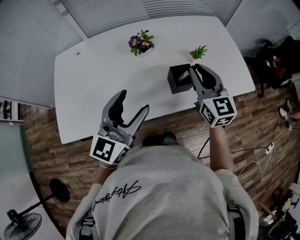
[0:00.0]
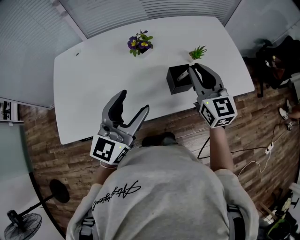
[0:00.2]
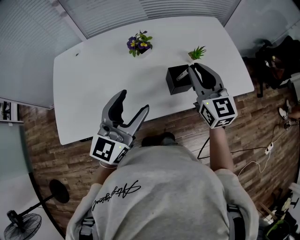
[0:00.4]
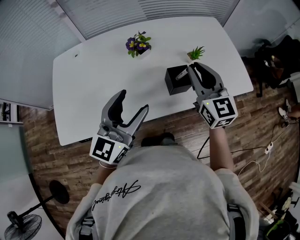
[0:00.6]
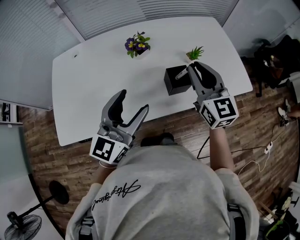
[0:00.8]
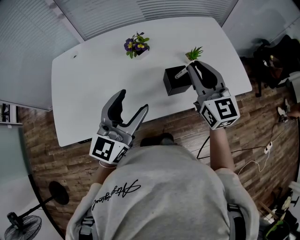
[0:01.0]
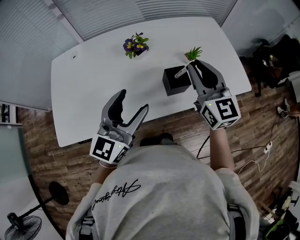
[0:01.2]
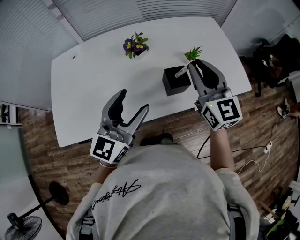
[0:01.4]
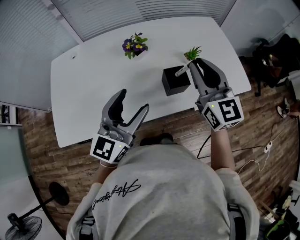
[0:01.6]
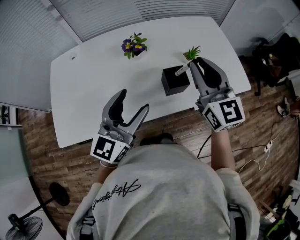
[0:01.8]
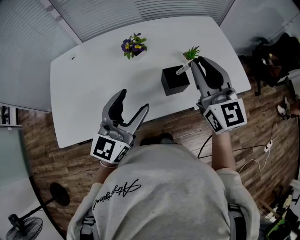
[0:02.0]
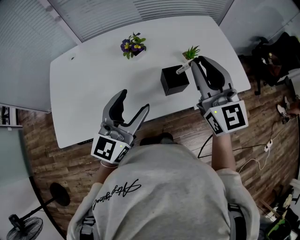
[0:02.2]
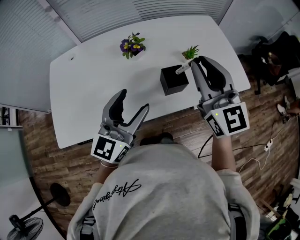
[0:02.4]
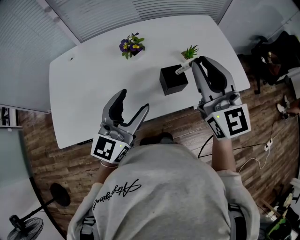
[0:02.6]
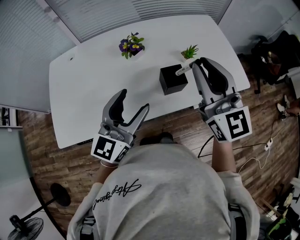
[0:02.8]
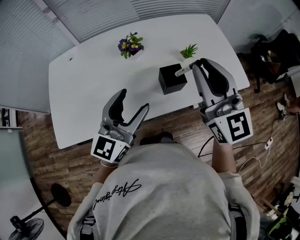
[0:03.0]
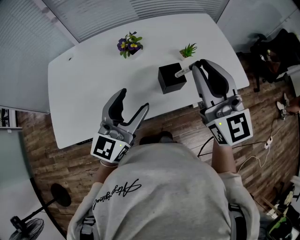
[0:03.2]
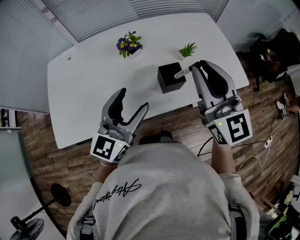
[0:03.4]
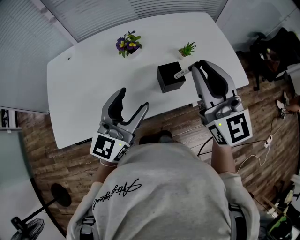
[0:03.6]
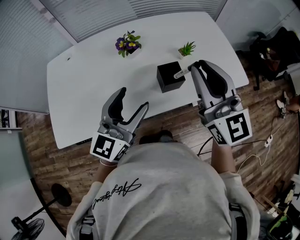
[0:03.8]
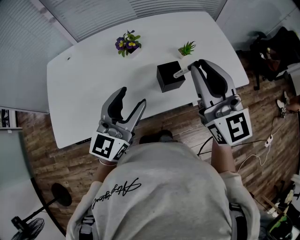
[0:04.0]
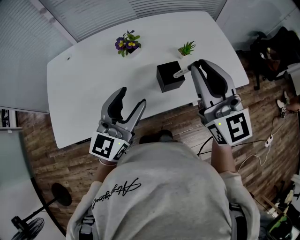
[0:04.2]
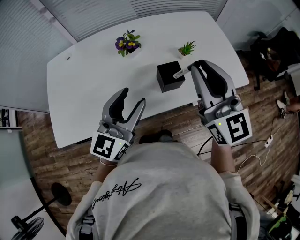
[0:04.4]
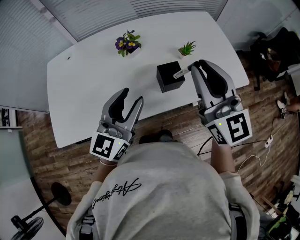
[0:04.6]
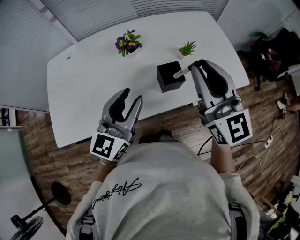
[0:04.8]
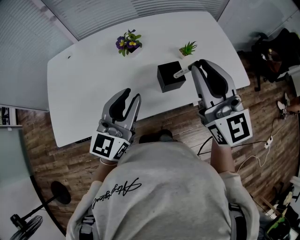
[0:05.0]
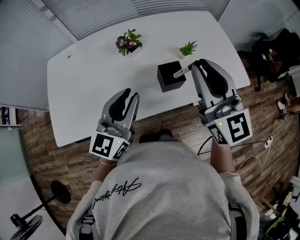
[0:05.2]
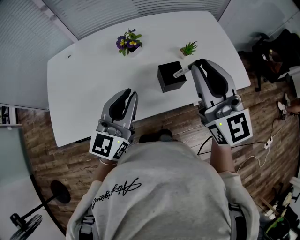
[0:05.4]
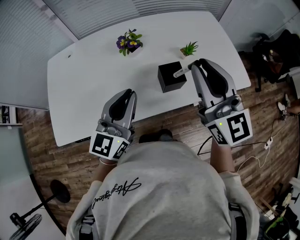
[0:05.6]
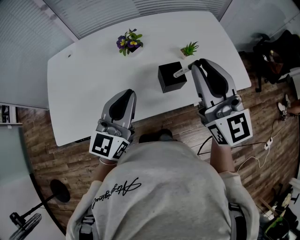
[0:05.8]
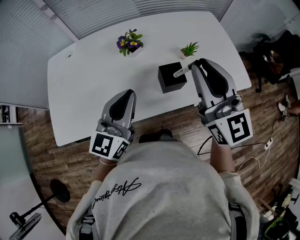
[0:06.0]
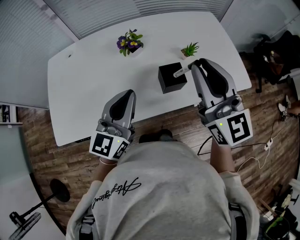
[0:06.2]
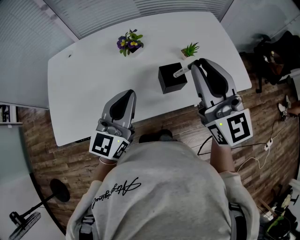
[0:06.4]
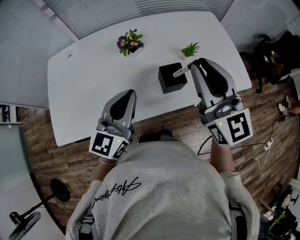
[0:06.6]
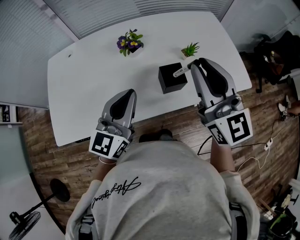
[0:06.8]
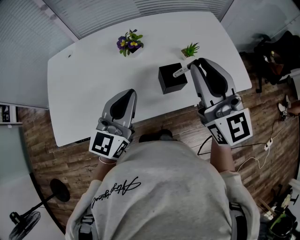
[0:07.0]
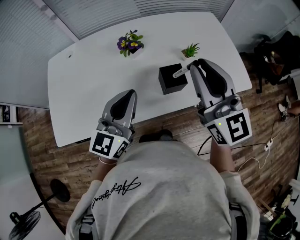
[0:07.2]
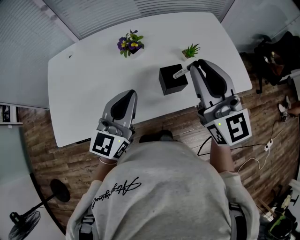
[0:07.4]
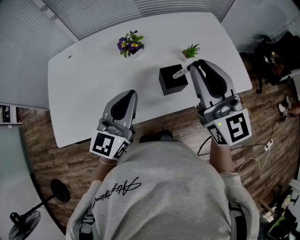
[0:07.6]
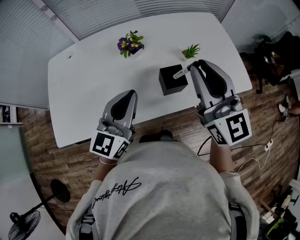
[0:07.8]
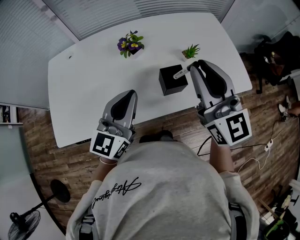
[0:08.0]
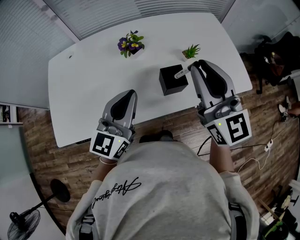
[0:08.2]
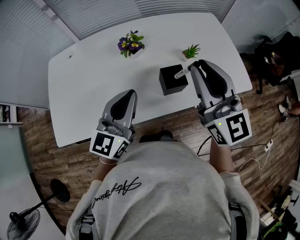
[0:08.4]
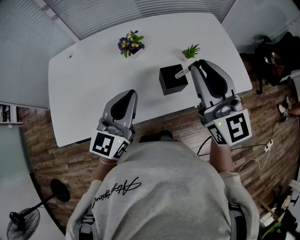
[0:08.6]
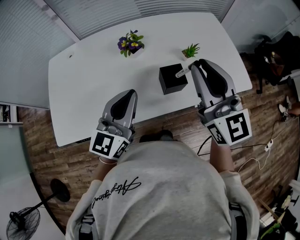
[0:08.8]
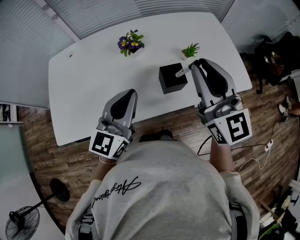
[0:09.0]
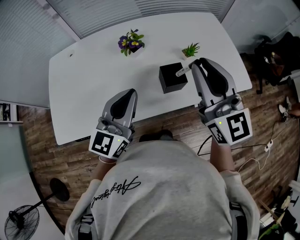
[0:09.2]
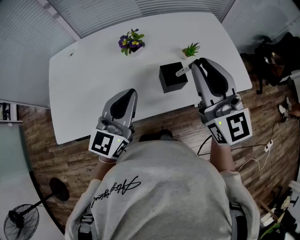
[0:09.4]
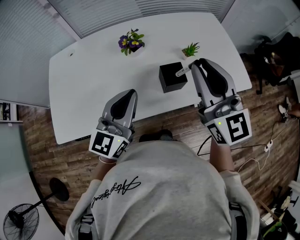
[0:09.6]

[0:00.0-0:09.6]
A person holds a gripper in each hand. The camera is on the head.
0:00.0 to 0:01.6: The right gripper shifts approximately 5 cm upward.
0:01.6 to 0:03.2: The right gripper goes approximately 5 cm upward.
0:03.2 to 0:04.8: The left gripper closes up.
0:04.8 to 0:06.4: The left gripper closes.
0:06.4 to 0:08.0: The two grippers keep their place.
0:08.0 to 0:09.6: There are only small adjustments of the grippers.

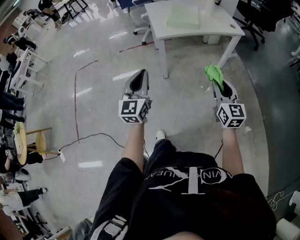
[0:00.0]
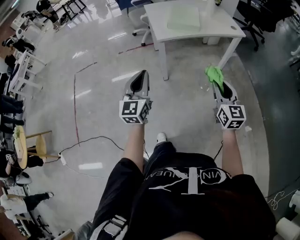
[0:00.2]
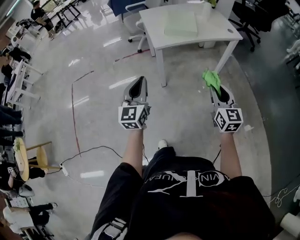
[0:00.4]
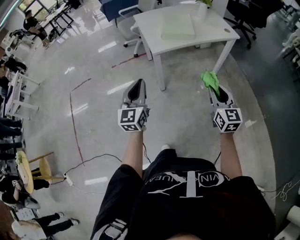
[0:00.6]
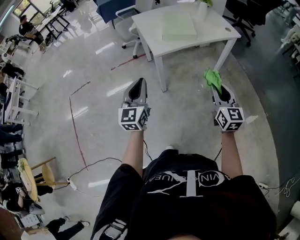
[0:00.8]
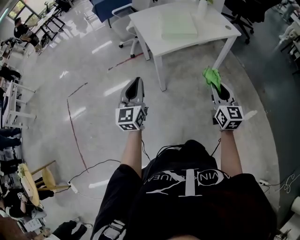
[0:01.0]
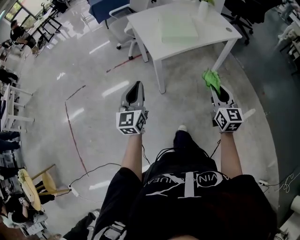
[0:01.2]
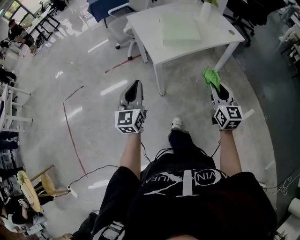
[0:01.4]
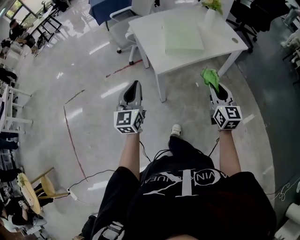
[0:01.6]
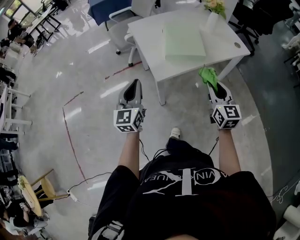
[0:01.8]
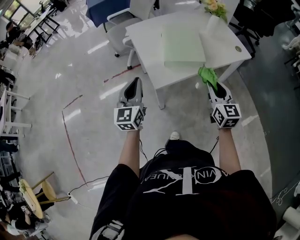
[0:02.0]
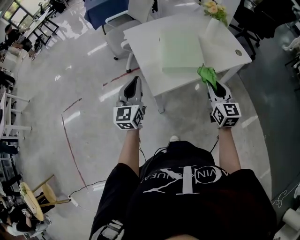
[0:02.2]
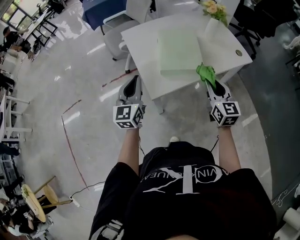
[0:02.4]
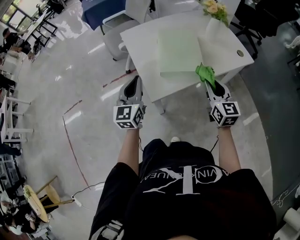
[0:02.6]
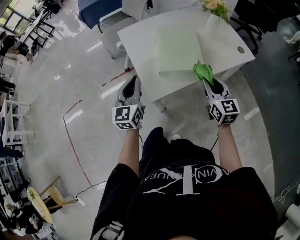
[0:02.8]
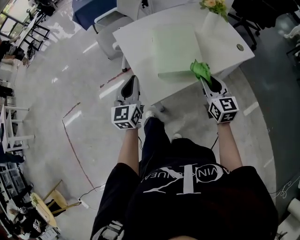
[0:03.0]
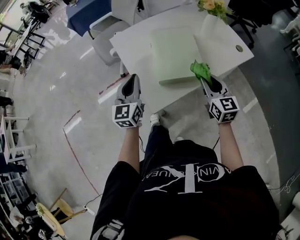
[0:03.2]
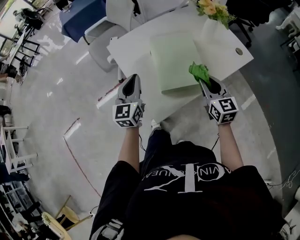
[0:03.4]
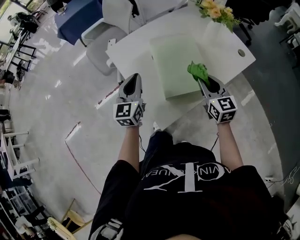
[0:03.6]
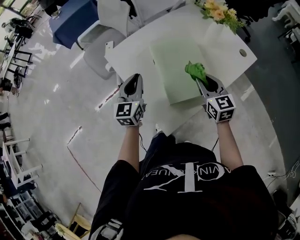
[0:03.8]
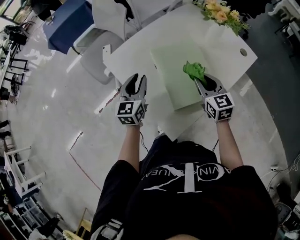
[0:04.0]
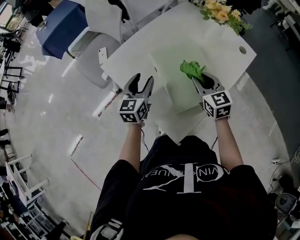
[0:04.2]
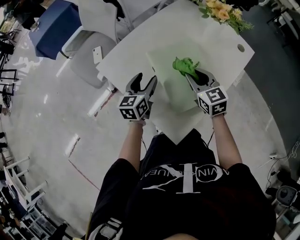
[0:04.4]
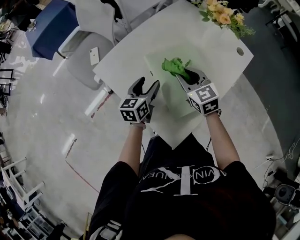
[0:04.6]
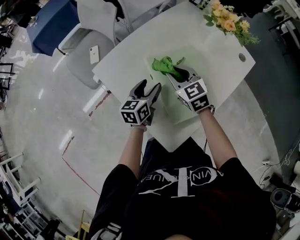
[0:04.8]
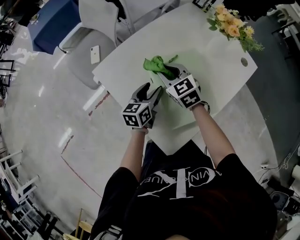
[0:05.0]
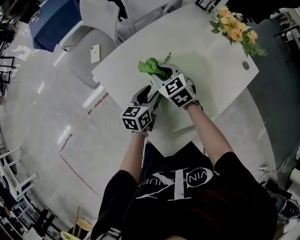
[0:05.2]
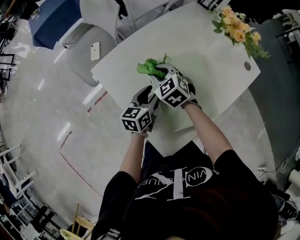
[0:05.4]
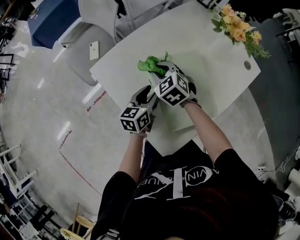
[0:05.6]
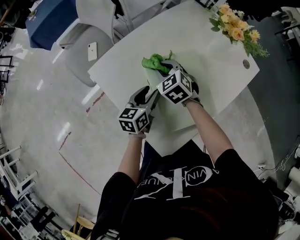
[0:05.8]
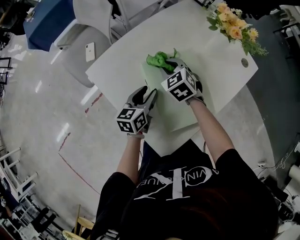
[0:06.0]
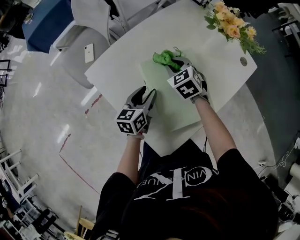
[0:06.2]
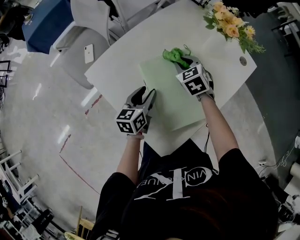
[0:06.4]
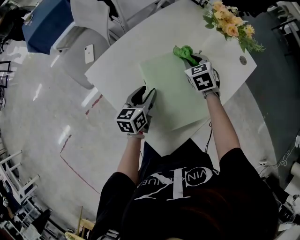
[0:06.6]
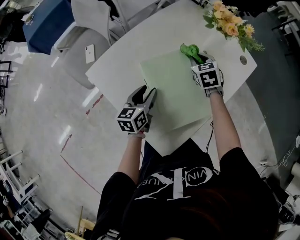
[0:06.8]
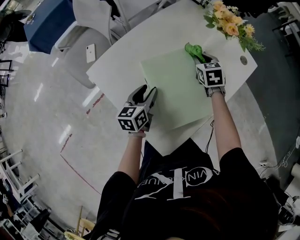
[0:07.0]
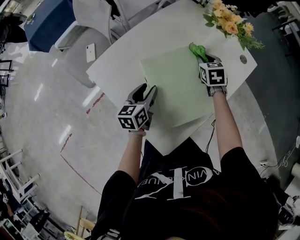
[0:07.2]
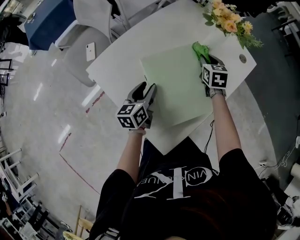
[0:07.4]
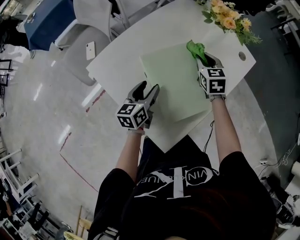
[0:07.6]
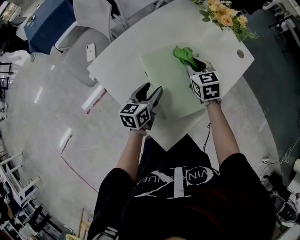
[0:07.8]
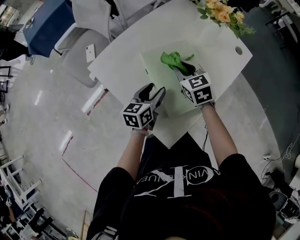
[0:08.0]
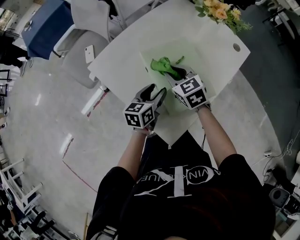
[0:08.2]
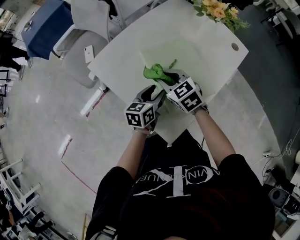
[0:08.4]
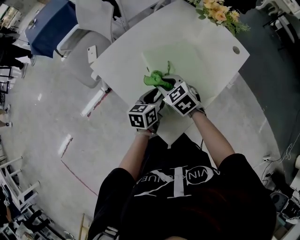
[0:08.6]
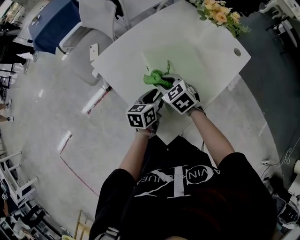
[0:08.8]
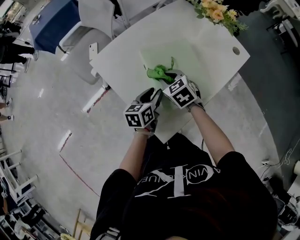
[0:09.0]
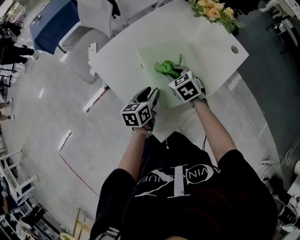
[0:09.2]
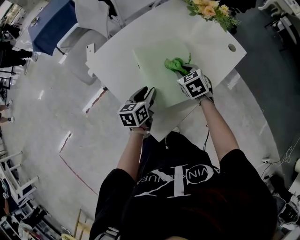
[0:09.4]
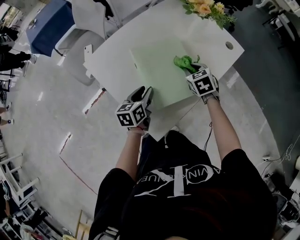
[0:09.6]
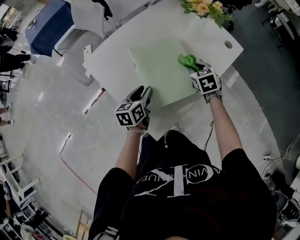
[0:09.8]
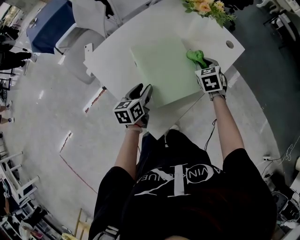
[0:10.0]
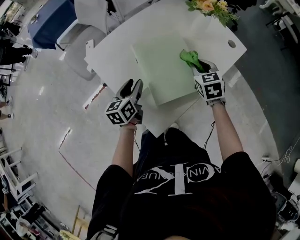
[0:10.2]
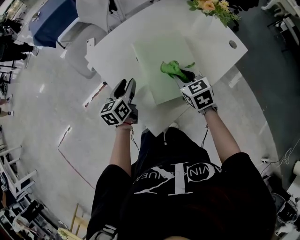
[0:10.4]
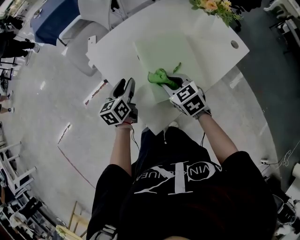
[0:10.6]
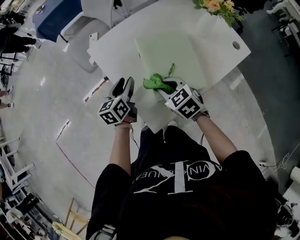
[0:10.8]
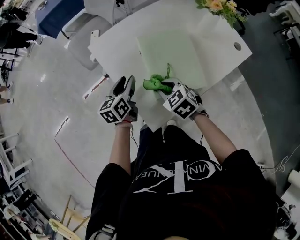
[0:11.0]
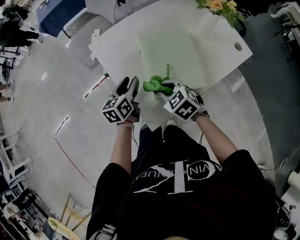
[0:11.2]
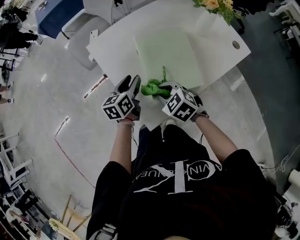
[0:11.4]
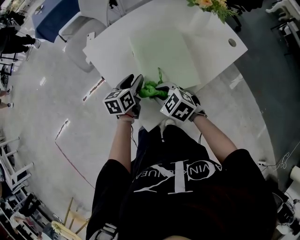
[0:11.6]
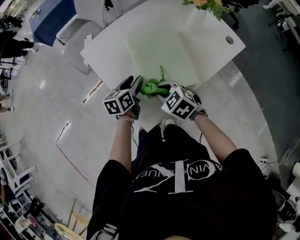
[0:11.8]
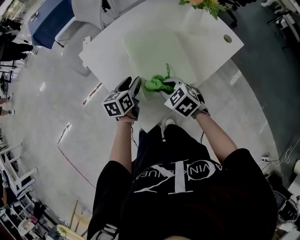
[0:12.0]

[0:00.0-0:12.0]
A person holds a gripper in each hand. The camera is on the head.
0:00.0 to 0:01.6: The two grippers go roughly 30 cm forward.
0:01.6 to 0:03.0: The grippers both shift forward by approximately 25 cm.
0:03.0 to 0:04.4: The left gripper heads forward, covering roughly 25 cm, swivels approximately 40 degrees, and opens. The right gripper moves forward and to the left, about 25 cm.
0:04.4 to 0:06.0: The left gripper ends up about 5 cm from where it was. The right gripper moves forward, to the left and downward, roughly 15 cm, and changes its angle by some 30 degrees.
0:06.0 to 0:07.6: The right gripper travels to the right by some 15 cm, and rotates about 30 degrees.
0:07.6 to 0:09.0: The right gripper travels to the left and backward by approximately 20 cm, and turns by roughly 30 degrees. Meanwhile the left gripper moves backward, roughly 5 cm.
0:09.0 to 0:10.4: The right gripper heads to the right, covering approximately 10 cm. Meanwhile the left gripper heads to the left, covering roughly 10 cm.
0:10.4 to 0:12.0: The right gripper is displaced backward by some 5 cm, and rotates approximately 20 degrees. Meanwhile the left gripper travels to the right by roughly 5 cm.

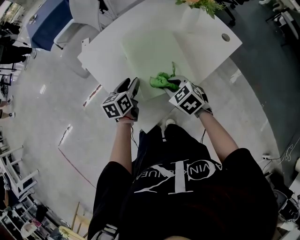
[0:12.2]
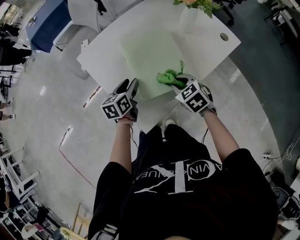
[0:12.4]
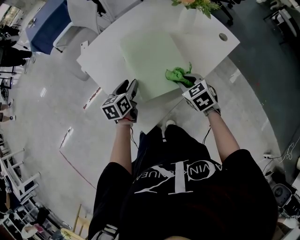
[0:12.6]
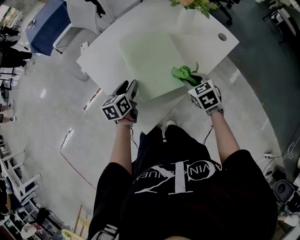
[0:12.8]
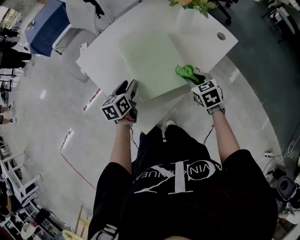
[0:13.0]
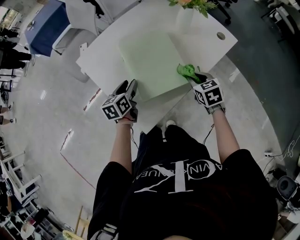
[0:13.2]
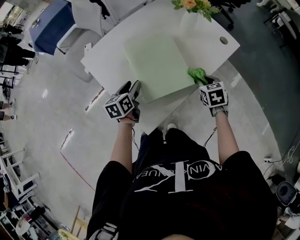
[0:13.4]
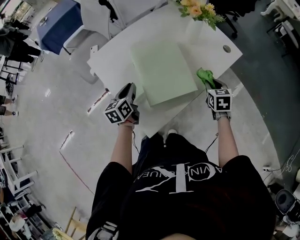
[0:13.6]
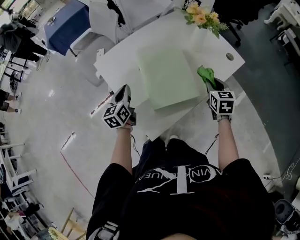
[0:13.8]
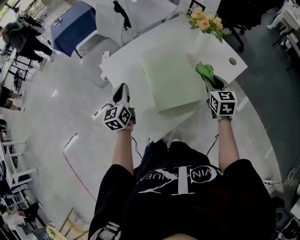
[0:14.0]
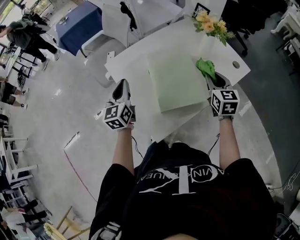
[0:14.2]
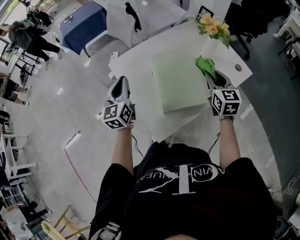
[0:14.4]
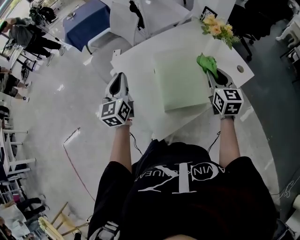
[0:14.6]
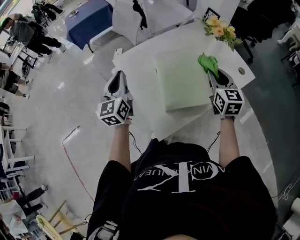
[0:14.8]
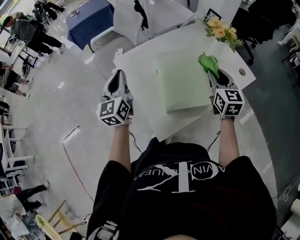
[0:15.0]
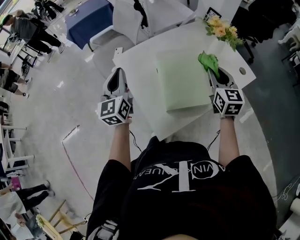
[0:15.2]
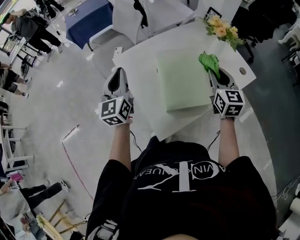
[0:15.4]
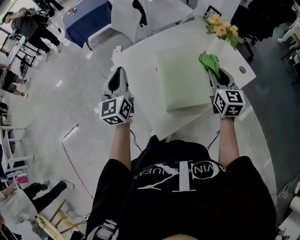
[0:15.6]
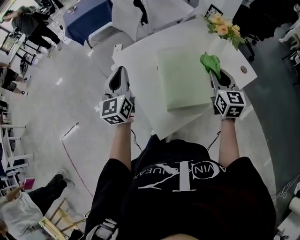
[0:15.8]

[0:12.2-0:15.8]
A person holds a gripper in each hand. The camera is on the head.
0:12.2 to 0:14.0: The left gripper is displaced upward and to the left by roughly 15 cm, rotates approximately 30 degrees, and closes up, while the right gripper heads to the right, upward and forward, covering approximately 20 cm, and swivels about 40 degrees.
0:14.0 to 0:15.8: The right gripper goes some 10 cm upward and to the left. The left gripper is displaced upward by about 10 cm.
